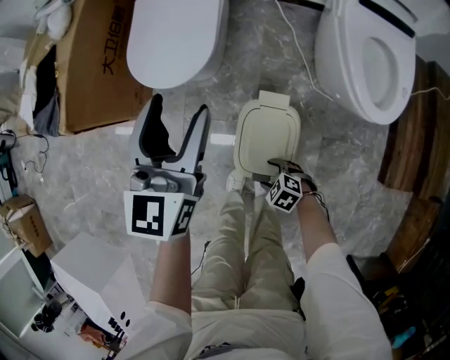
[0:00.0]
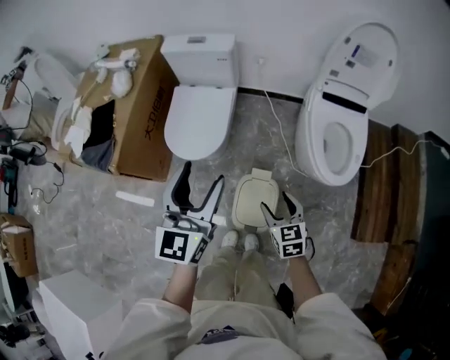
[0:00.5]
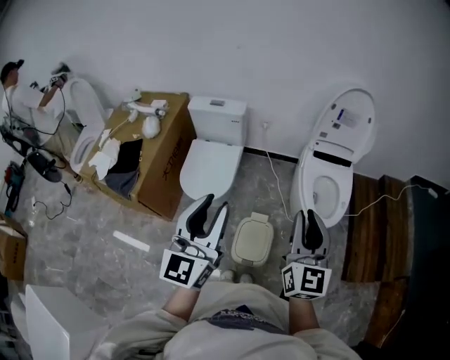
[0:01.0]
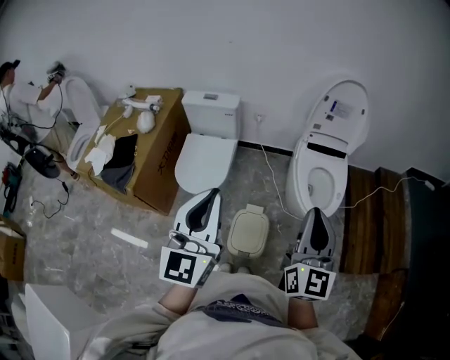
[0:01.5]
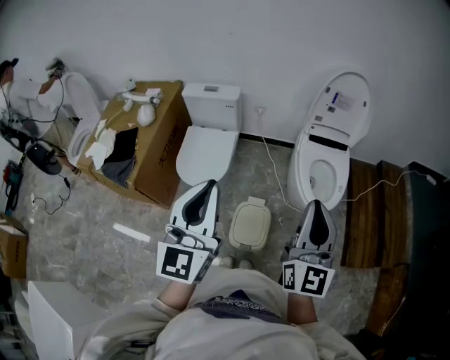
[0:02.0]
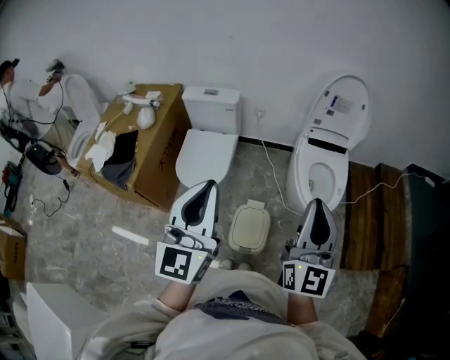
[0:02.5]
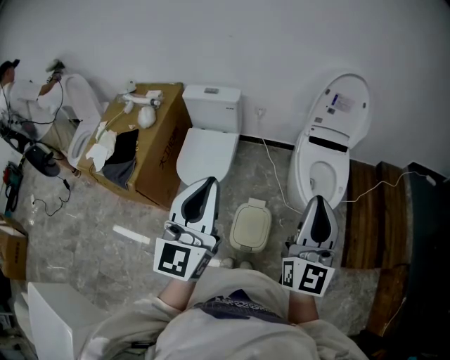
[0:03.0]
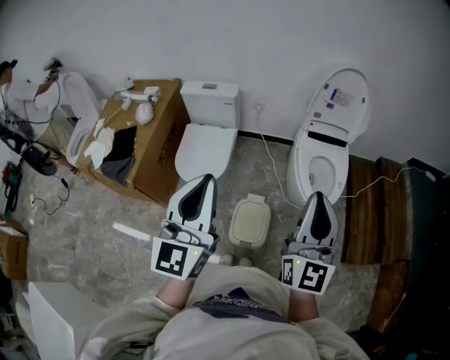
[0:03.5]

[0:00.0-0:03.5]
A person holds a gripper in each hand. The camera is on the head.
0:00.0 to 0:02.0: The right gripper is displaced upward by roughly 70 cm, angles its fingers upward, by about 70 degrees, and closes up, while the left gripper travels upward by some 40 cm, changes its angle by approximately 20 degrees, and closes.
0:02.0 to 0:03.5: The grippers move only a little.

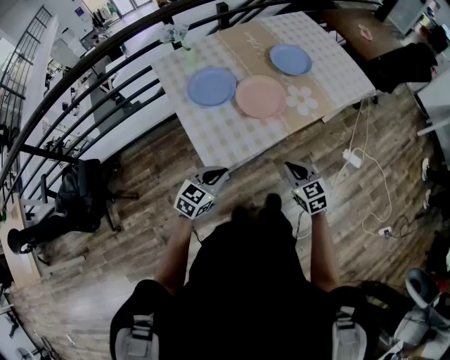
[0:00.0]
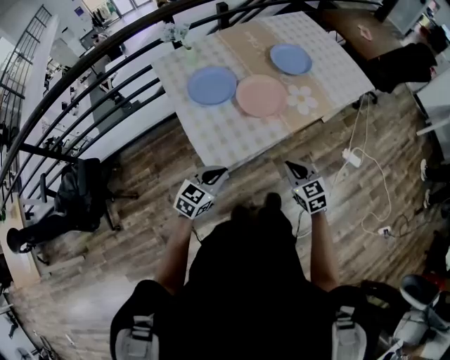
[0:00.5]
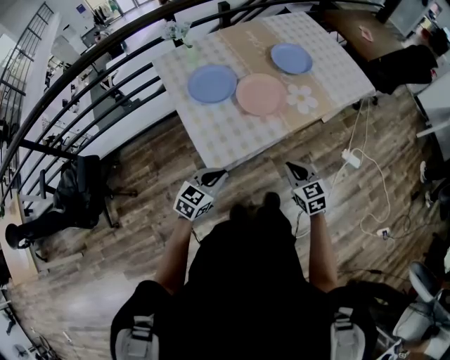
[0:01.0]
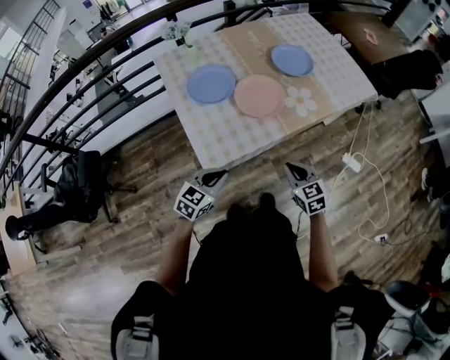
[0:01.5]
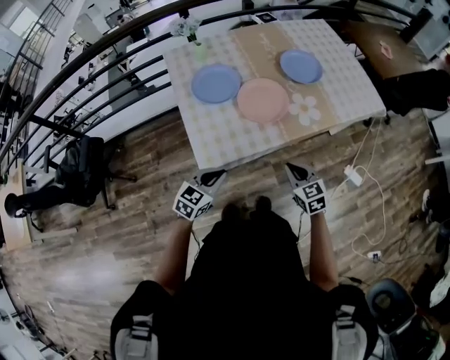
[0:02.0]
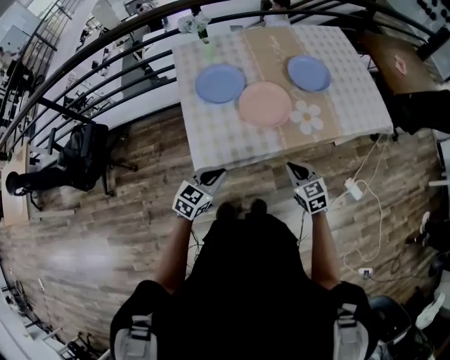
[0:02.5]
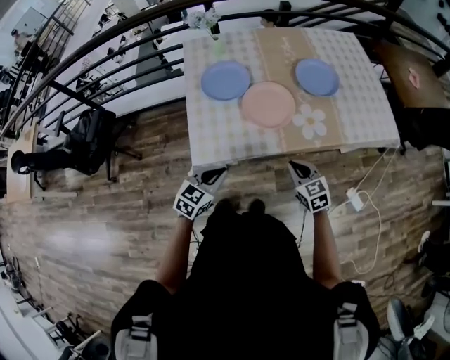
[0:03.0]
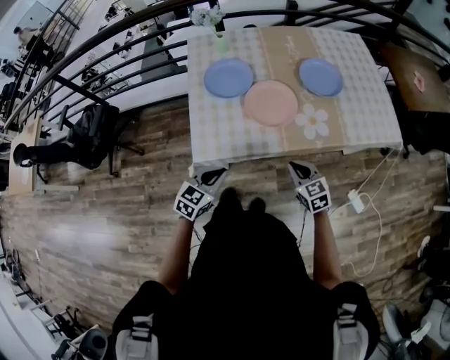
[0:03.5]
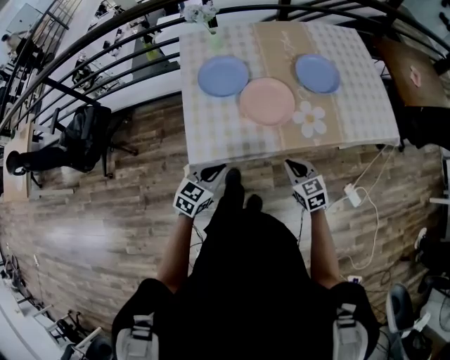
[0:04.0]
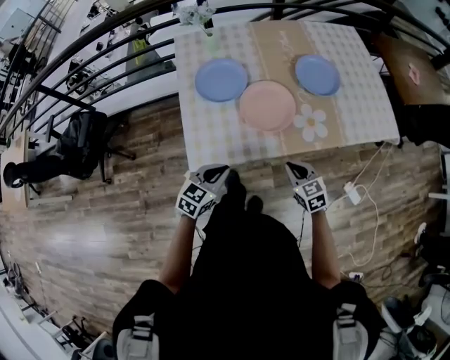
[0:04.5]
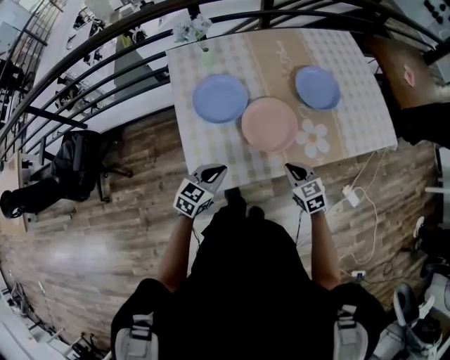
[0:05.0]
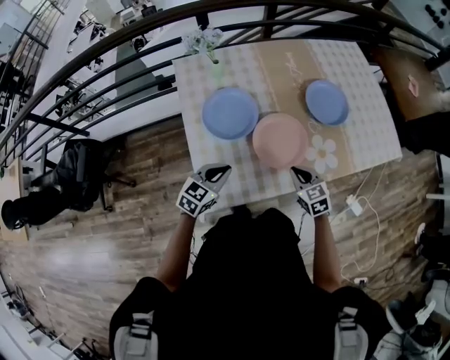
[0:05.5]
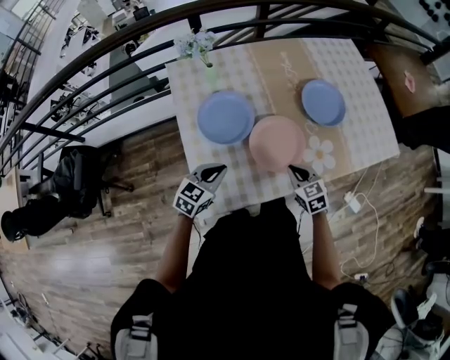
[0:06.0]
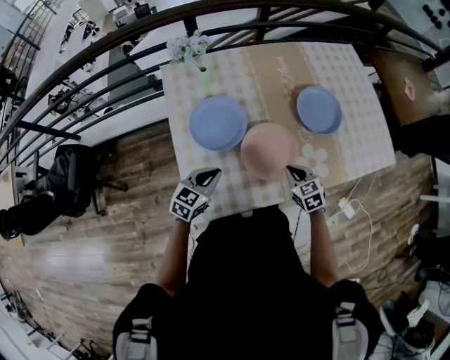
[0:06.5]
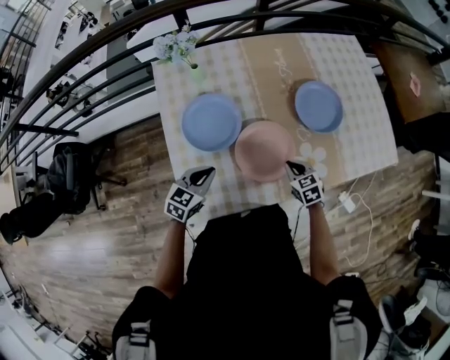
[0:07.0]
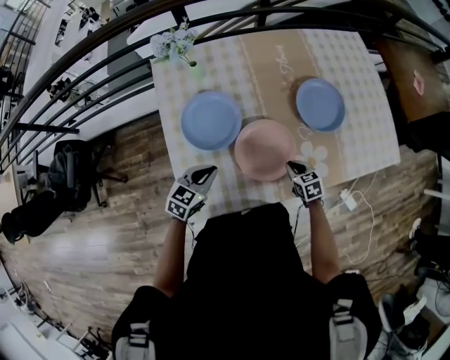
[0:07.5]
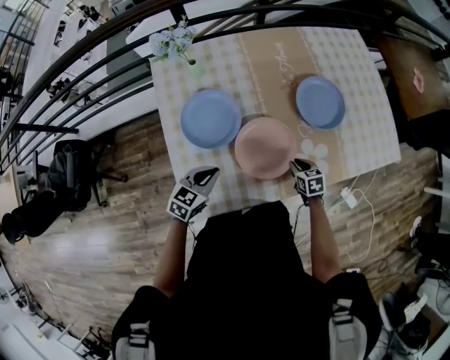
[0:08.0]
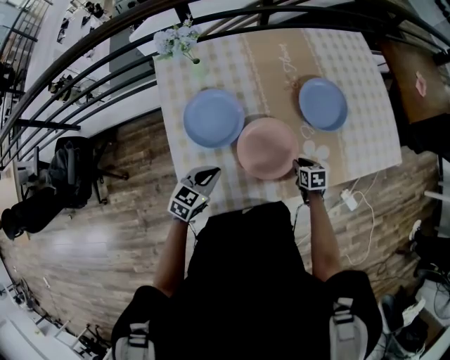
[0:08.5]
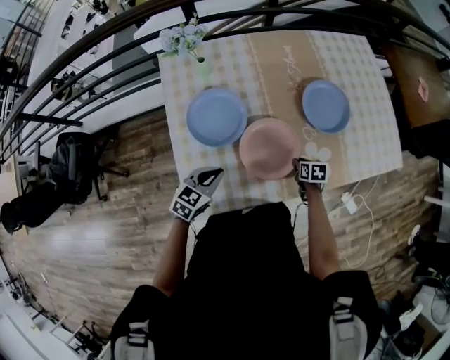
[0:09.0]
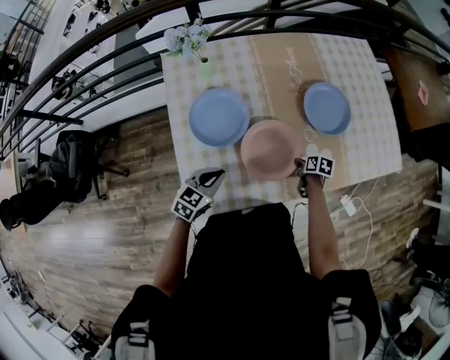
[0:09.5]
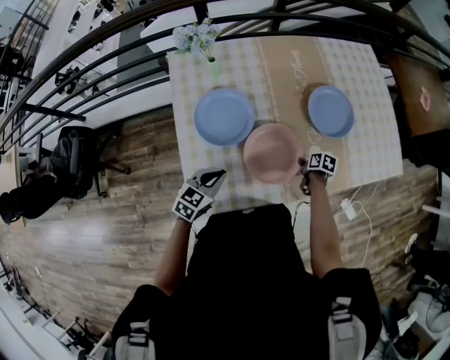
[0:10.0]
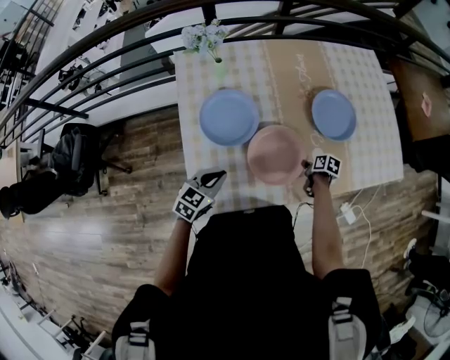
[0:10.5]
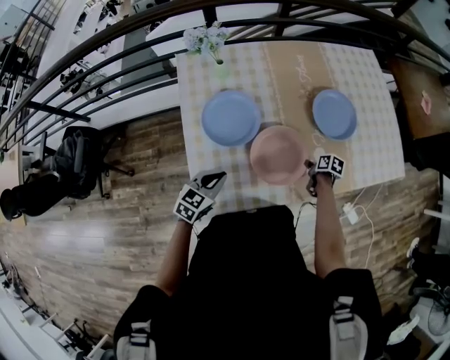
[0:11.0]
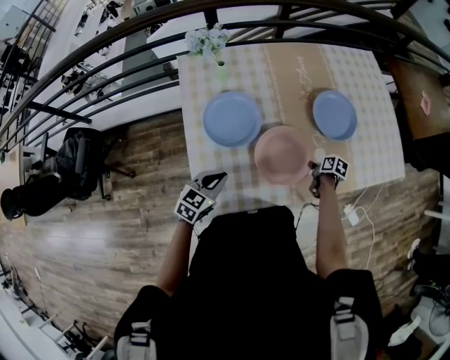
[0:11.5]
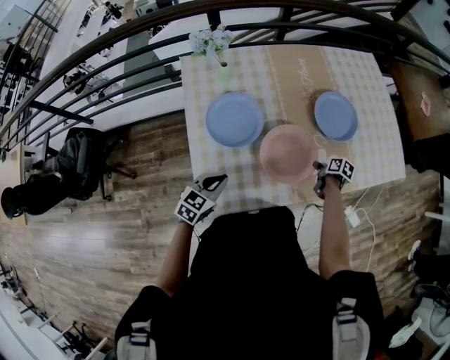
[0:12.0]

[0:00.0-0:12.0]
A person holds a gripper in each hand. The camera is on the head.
0:00.0 to 0:02.0: The right gripper shifts approximately 5 cm to the right.
0:02.0 to 0:04.0: The left gripper shifts roughly 5 cm to the right, while the right gripper travels forward and to the right by some 10 cm.
0:04.0 to 0:06.0: Both grippers travel together forward and to the left, some 20 cm.
0:06.0 to 0:08.0: The left gripper ends up some 5 cm from where it was, while the right gripper heads downward, to the right and forward, covering roughly 15 cm, and swivels approximately 20 degrees.
0:08.0 to 0:10.0: The right gripper turns by roughly 40 degrees.
0:10.0 to 0:12.0: The grippers move only a little.

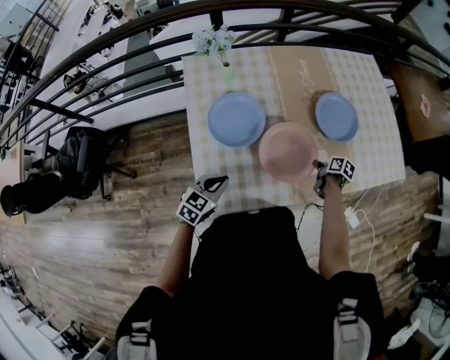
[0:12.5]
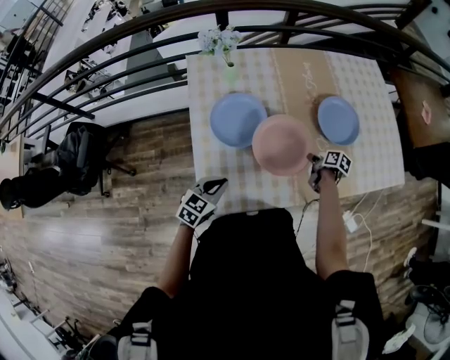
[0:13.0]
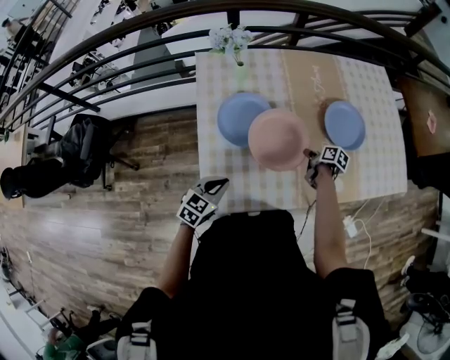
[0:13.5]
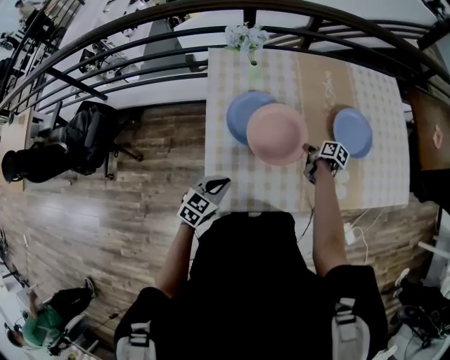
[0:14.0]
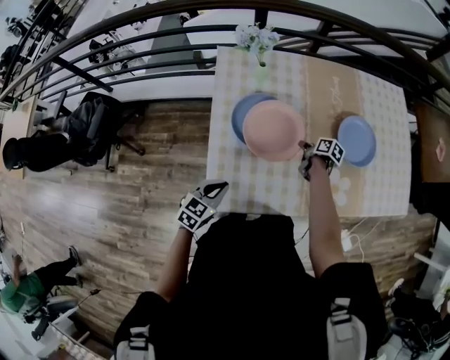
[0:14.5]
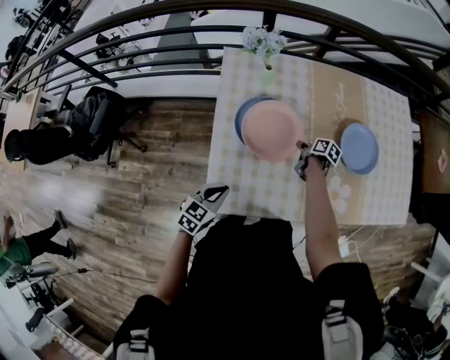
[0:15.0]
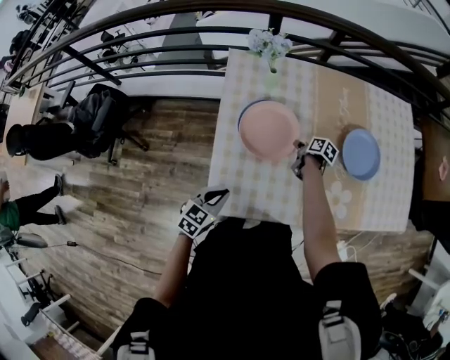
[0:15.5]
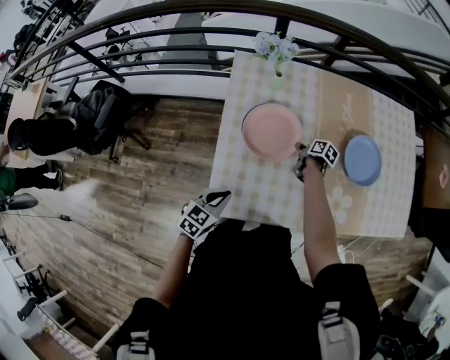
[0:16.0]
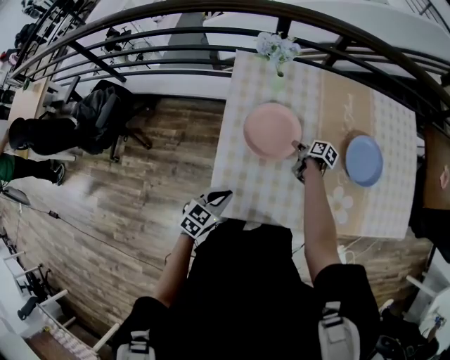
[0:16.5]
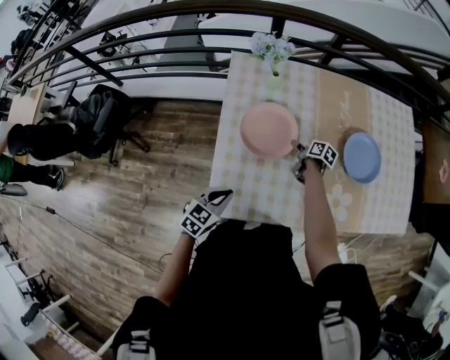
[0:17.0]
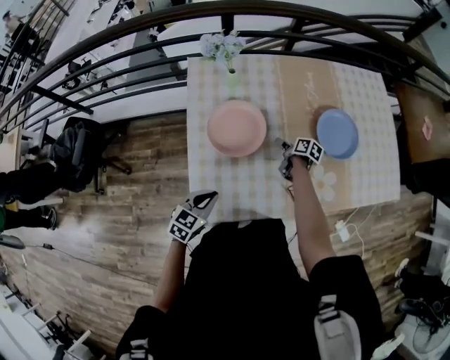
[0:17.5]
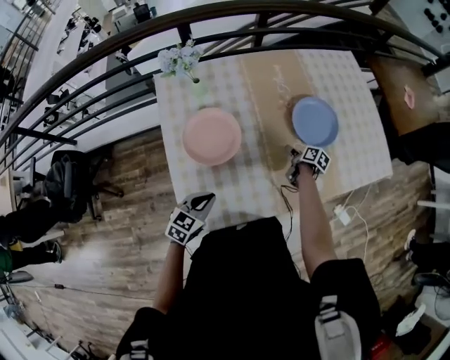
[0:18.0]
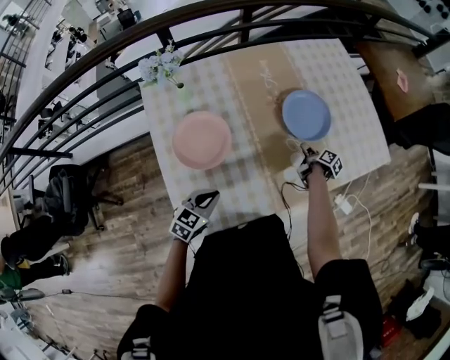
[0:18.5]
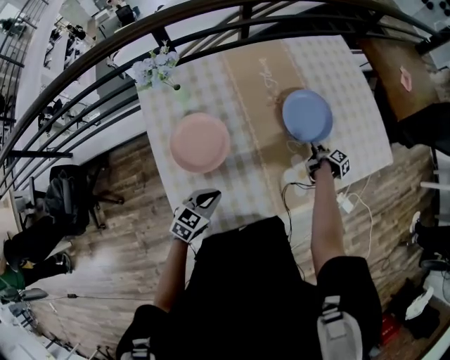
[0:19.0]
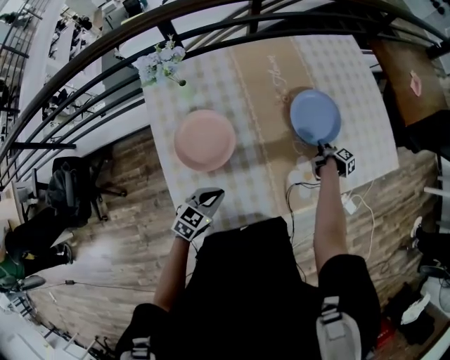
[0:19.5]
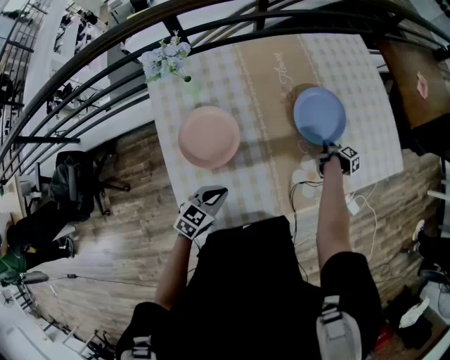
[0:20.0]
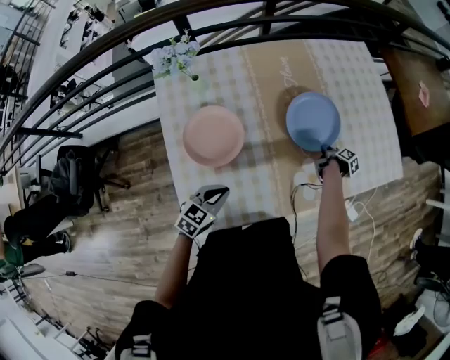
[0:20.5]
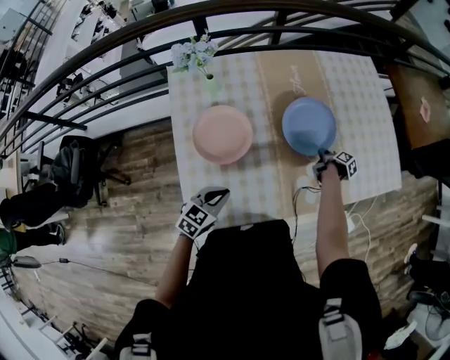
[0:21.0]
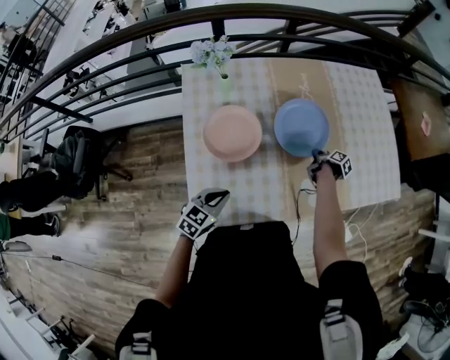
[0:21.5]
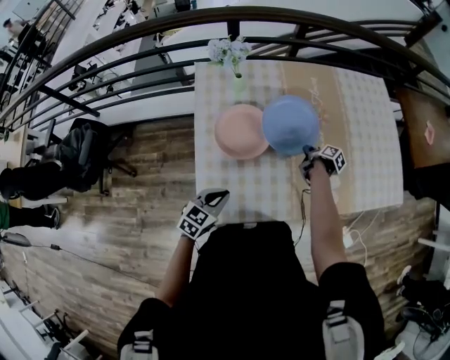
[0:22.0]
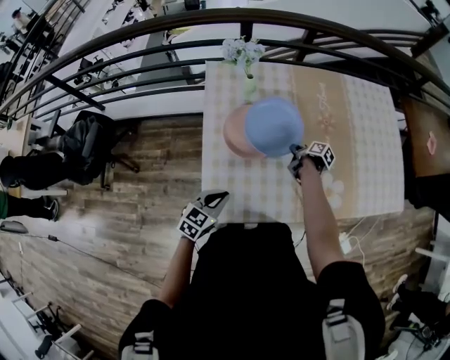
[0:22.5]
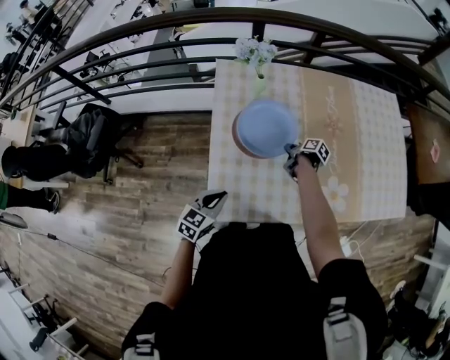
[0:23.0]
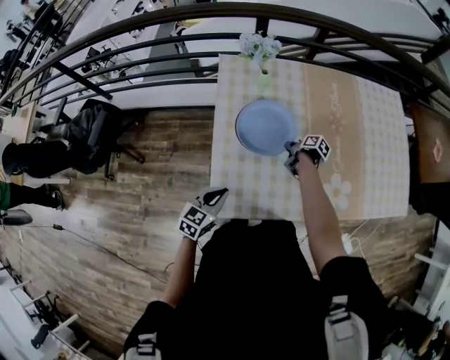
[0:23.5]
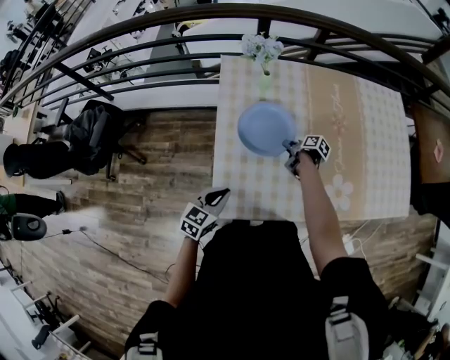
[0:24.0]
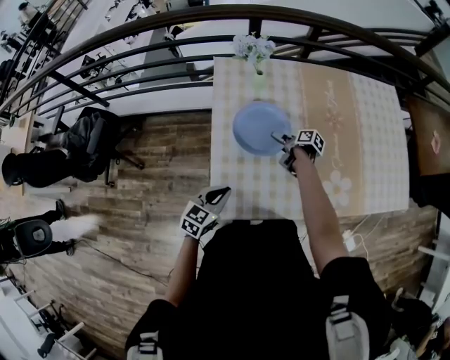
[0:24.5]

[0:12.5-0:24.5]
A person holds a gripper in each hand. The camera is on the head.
0:12.5 to 0:14.5: The right gripper travels to the left and forward by approximately 20 cm, while the left gripper moves roughly 5 cm.
0:14.5 to 0:16.5: The right gripper moves to the left, about 5 cm.
0:16.5 to 0:18.5: The left gripper ends up some 15 cm from where it was, and turns by about 20 degrees, while the right gripper moves roughly 35 cm, and swivels approximately 40 degrees.
0:18.5 to 0:20.5: The right gripper moves forward, approximately 5 cm.
0:20.5 to 0:22.5: The right gripper moves about 30 cm, and rotates some 30 degrees. The left gripper moves roughly 15 cm.
0:22.5 to 0:24.5: The right gripper moves to the left, about 10 cm, and opens.
